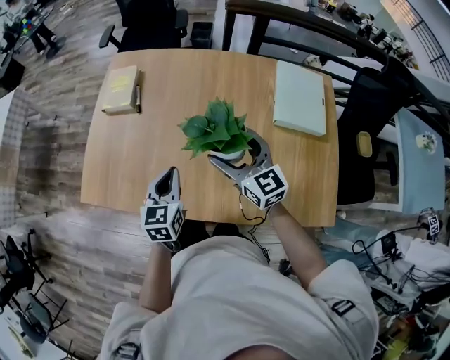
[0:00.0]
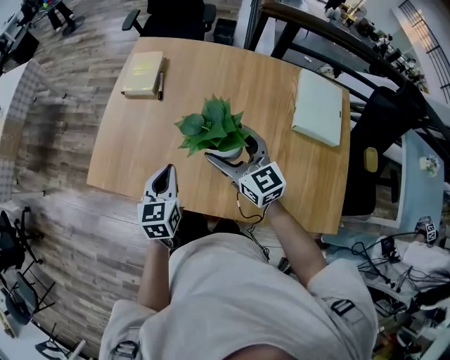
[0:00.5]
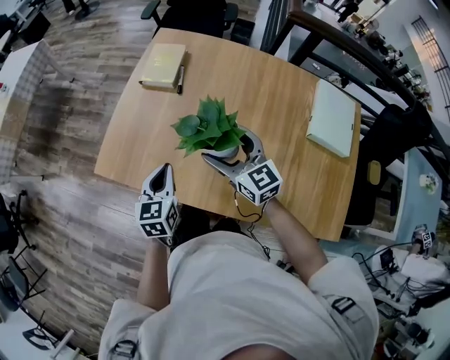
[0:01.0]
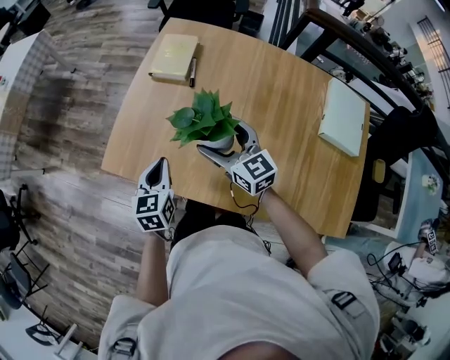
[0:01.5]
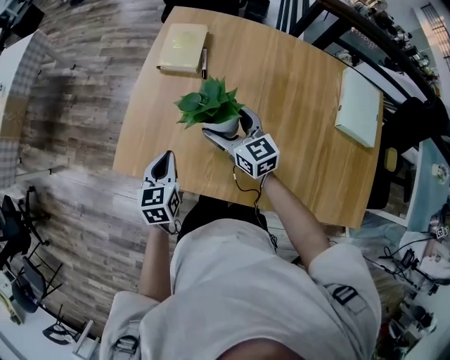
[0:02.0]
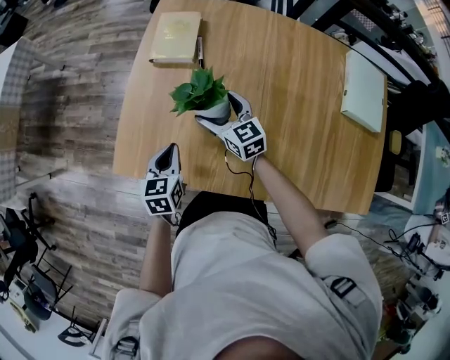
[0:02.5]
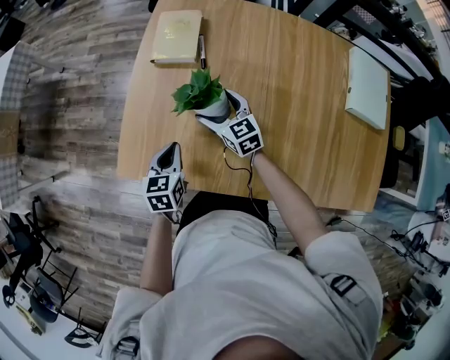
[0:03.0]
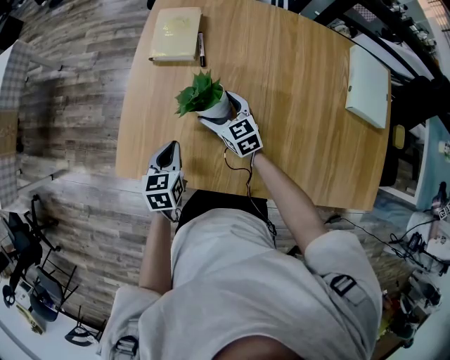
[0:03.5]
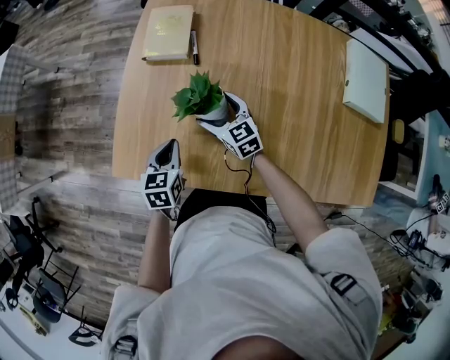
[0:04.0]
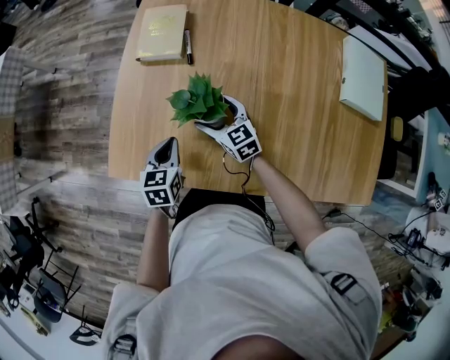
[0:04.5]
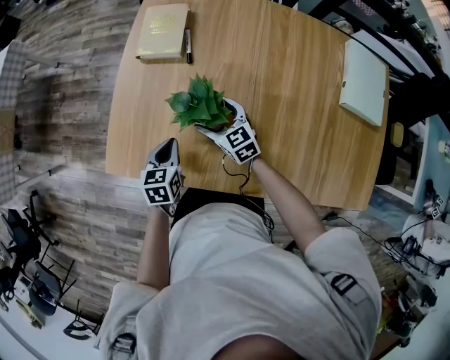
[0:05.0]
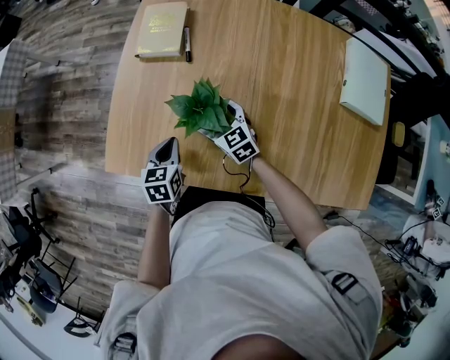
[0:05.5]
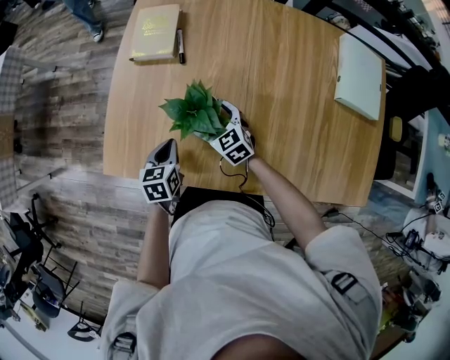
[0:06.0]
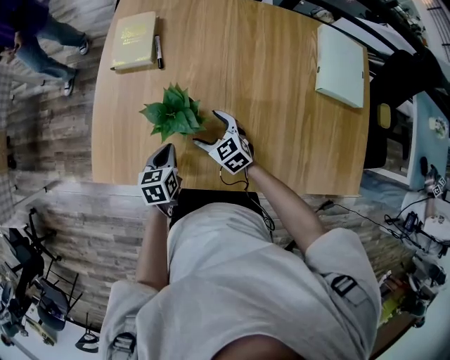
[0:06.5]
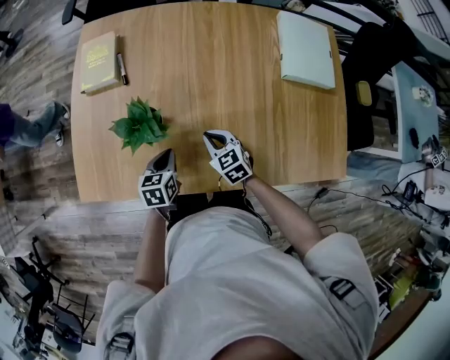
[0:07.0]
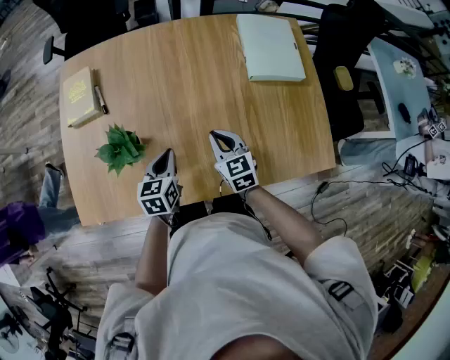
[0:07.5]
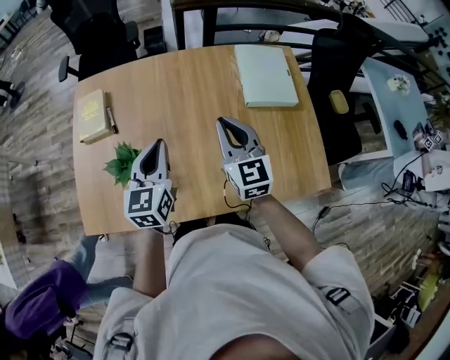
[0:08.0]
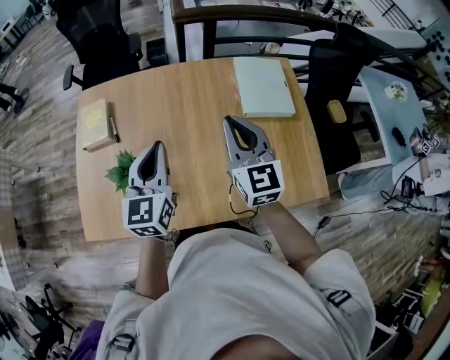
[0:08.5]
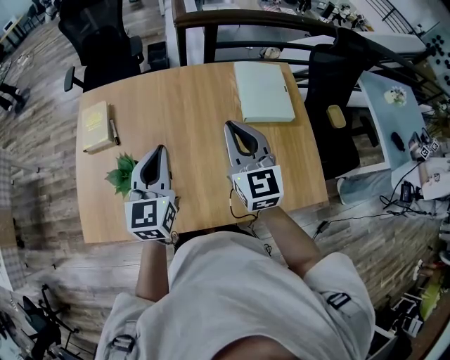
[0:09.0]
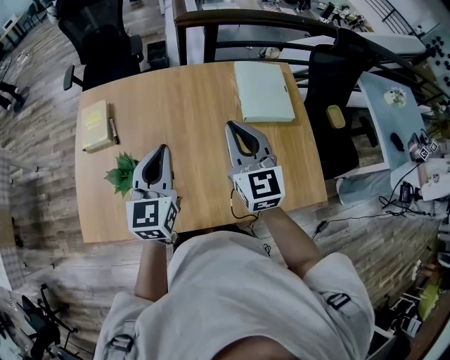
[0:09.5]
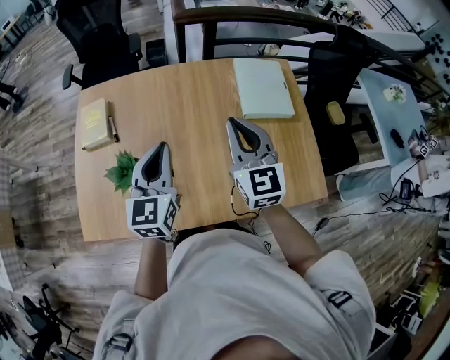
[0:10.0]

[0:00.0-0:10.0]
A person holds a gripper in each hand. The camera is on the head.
0:00.0 to 0:02.0: The right gripper moves to the left and forward, approximately 30 cm; the left gripper shifts roughly 25 cm to the left.
0:02.0 to 0:04.0: The left gripper heads downward, covering some 5 cm, while the right gripper travels downward by roughly 15 cm.
0:04.0 to 0:06.0: The right gripper moves roughly 5 cm.
0:06.0 to 0:08.0: The left gripper shifts by some 35 cm, and points its fingers roughly 30 degrees further upward, while the right gripper ends up some 40 cm from where it was, rotates about 50 degrees, and closes up.
0:08.0 to 0:10.0: The grippers both shift upward by roughly 5 cm.

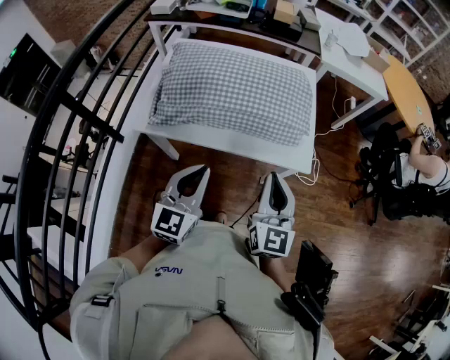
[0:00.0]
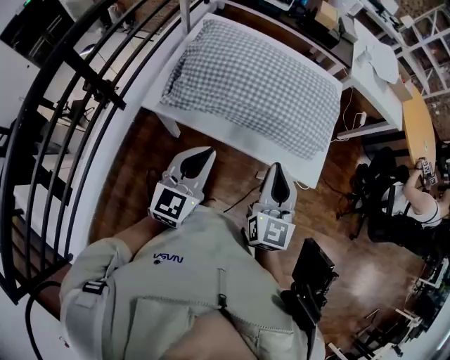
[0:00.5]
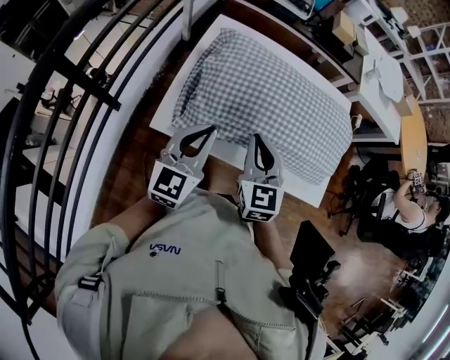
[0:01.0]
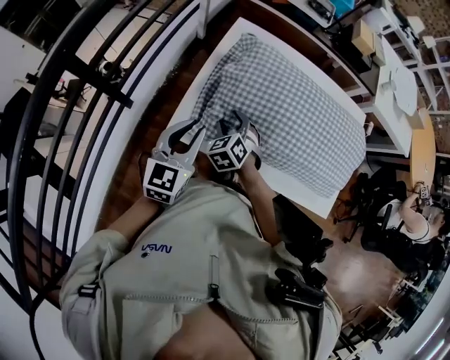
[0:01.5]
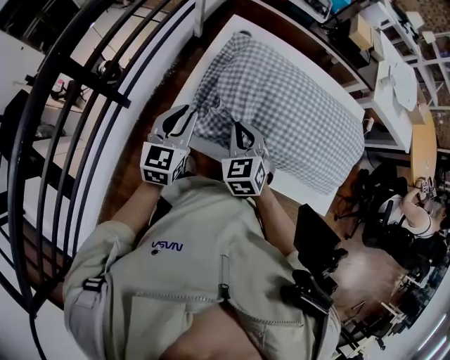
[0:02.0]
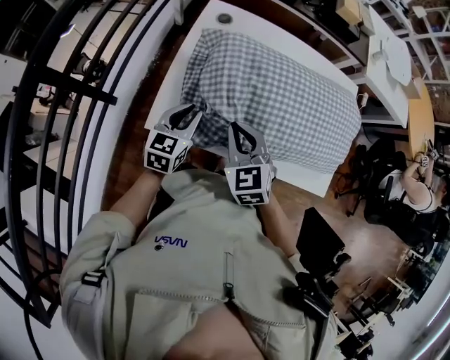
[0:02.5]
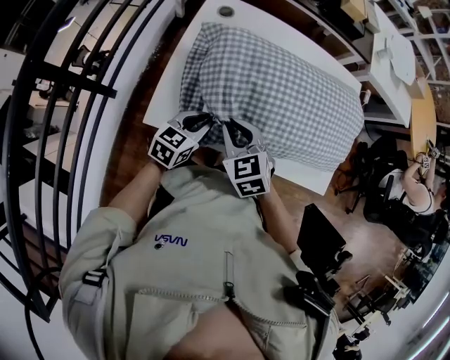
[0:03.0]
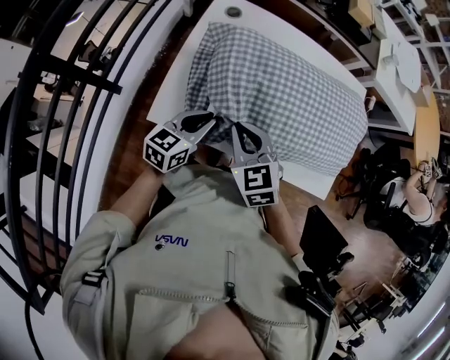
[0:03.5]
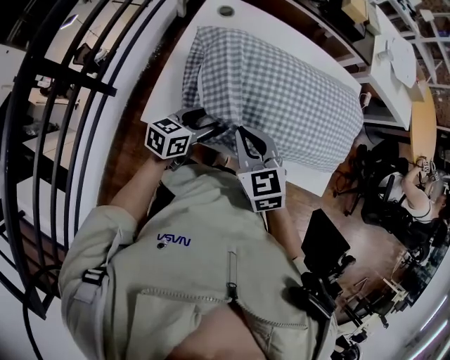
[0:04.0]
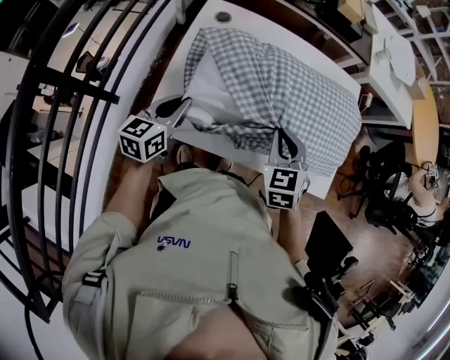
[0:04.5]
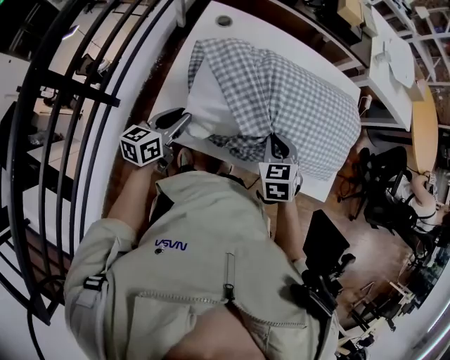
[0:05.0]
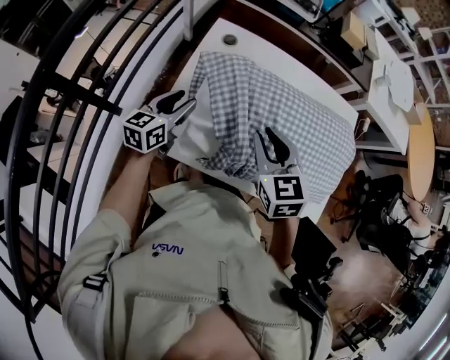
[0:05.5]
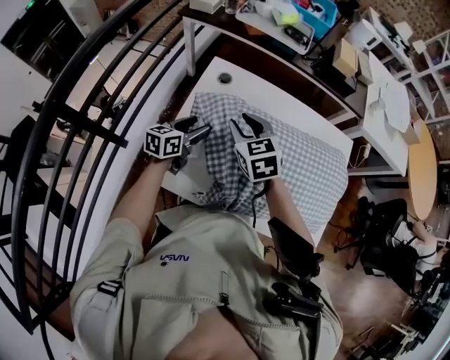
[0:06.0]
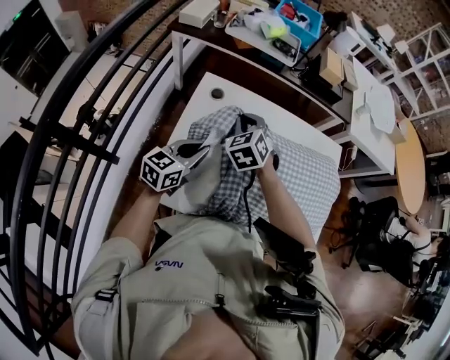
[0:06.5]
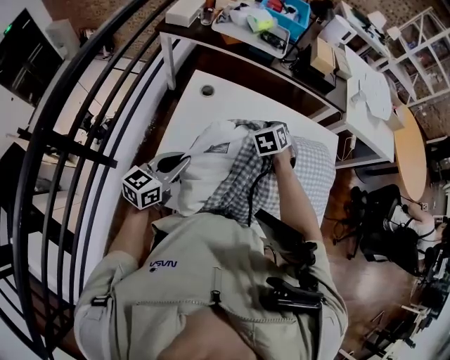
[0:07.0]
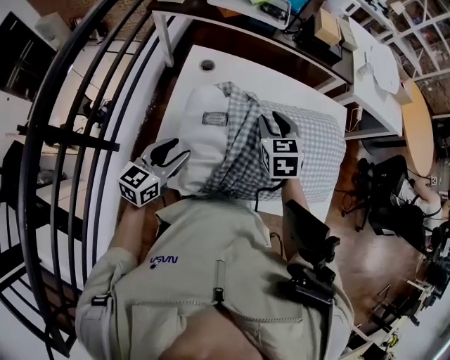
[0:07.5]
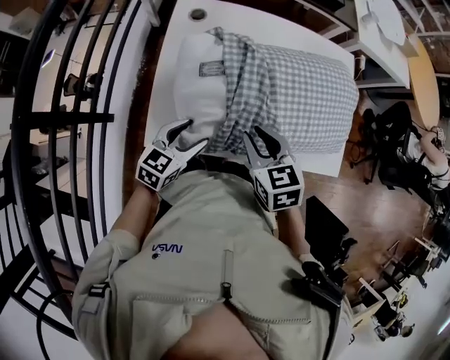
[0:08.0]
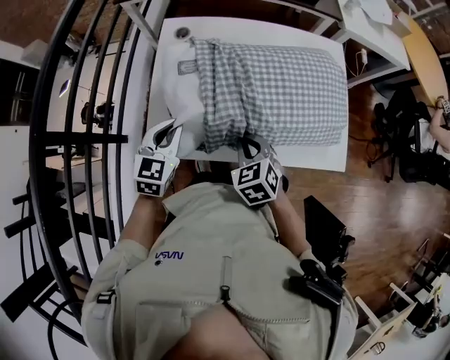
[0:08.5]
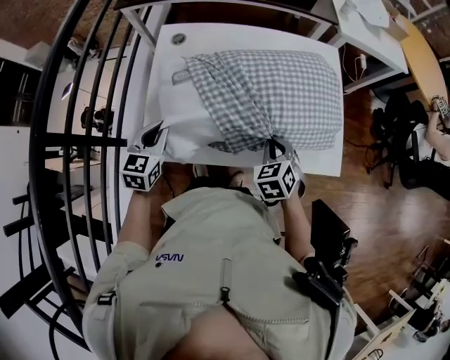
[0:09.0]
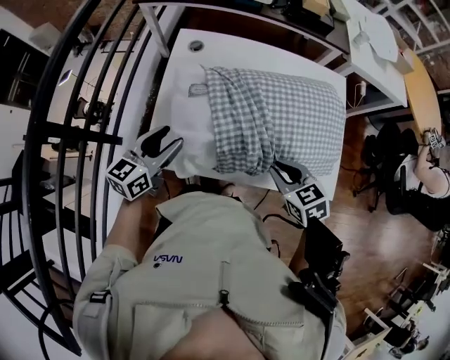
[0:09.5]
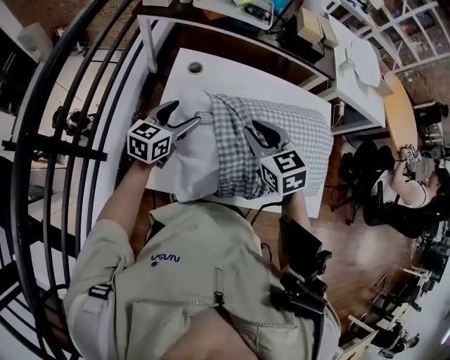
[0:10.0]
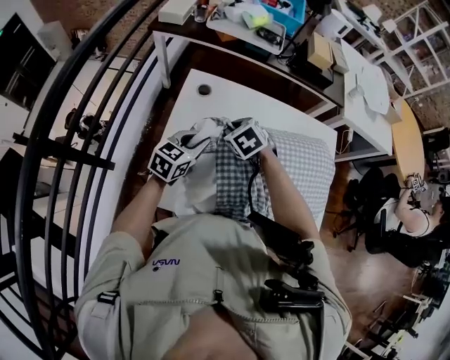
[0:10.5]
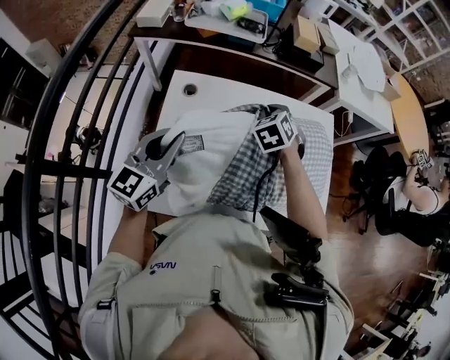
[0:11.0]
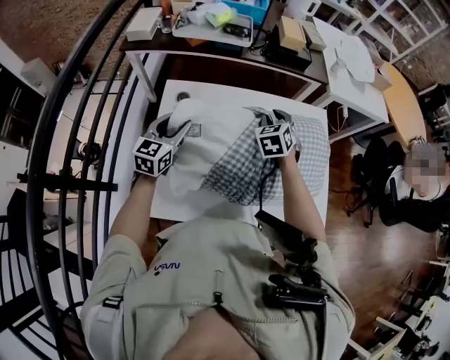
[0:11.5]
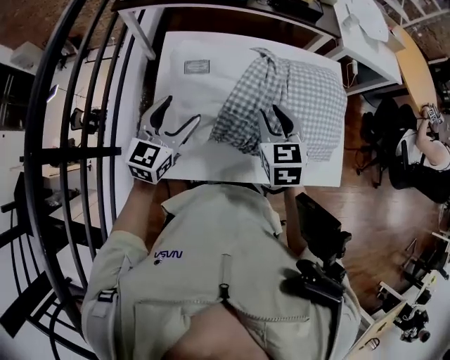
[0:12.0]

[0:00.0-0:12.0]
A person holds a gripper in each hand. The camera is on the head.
0:00.0 to 0:02.0: Both grippers move to the left and forward, some 40 cm. The right gripper angles its fingers downward, by about 30 degrees, and opens, then closes again.
0:02.0 to 0:04.0: The left gripper shifts some 15 cm to the right and downward, turns by roughly 40 degrees, and opens its fingers; the right gripper is displaced to the right by about 5 cm.
0:04.0 to 0:06.0: The left gripper shifts about 20 cm forward and to the left, and closes, then reopens. The right gripper shifts roughly 20 cm forward, and opens up.
0:06.0 to 0:08.0: Both grippers travel together backward and to the right, approximately 20 cm. The right gripper changes its angle by about 20 degrees, and closes and opens again, while the left gripper rotates approximately 30 degrees, and closes and opens again.
0:08.0 to 0:10.0: The left gripper travels forward by approximately 20 cm, and closes, then opens again. Meanwhile the right gripper moves forward and upward, approximately 15 cm, and reaches roughly 15 cm to the right, then returns.
0:10.0 to 0:12.0: The left gripper reaches some 15 cm upward, then returns, and closes, then reopens. Meanwhile the right gripper is displaced to the right by about 5 cm, reaches some 15 cm forward, then returns, and swivels some 20 degrees.

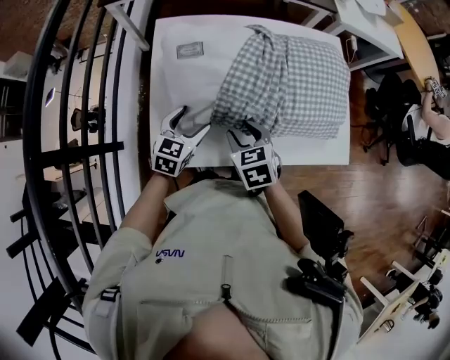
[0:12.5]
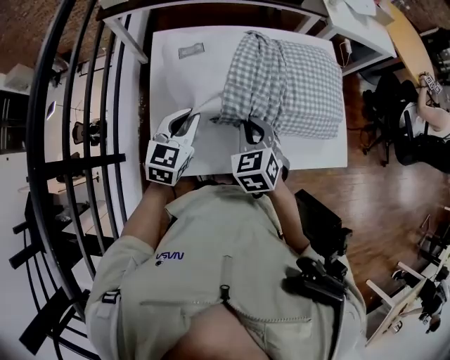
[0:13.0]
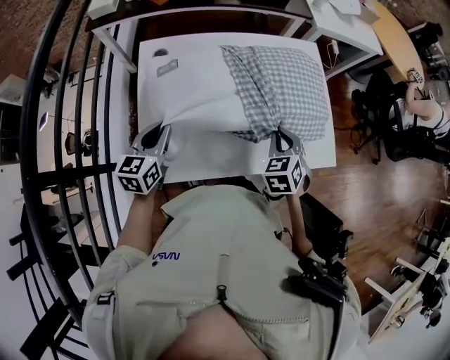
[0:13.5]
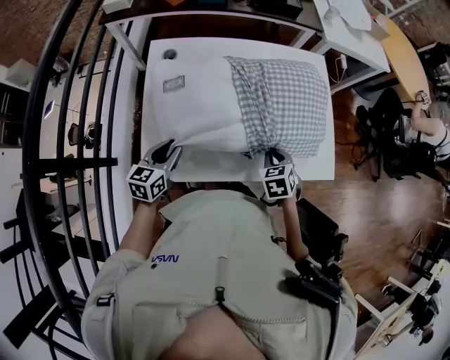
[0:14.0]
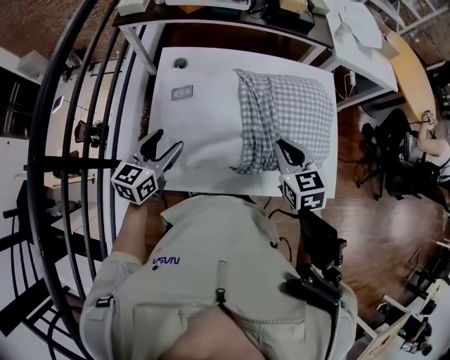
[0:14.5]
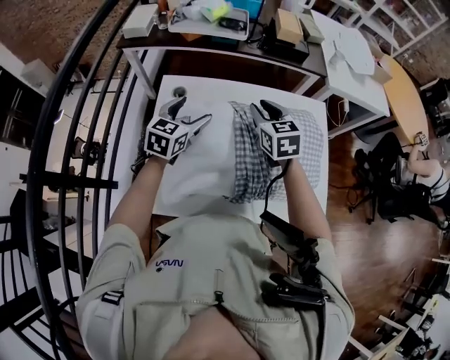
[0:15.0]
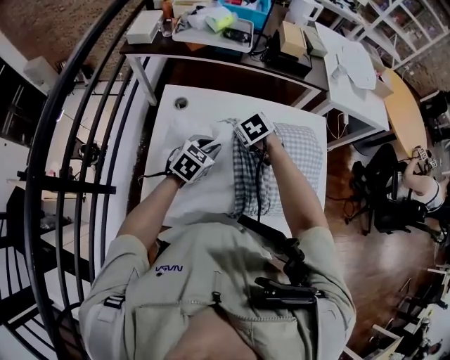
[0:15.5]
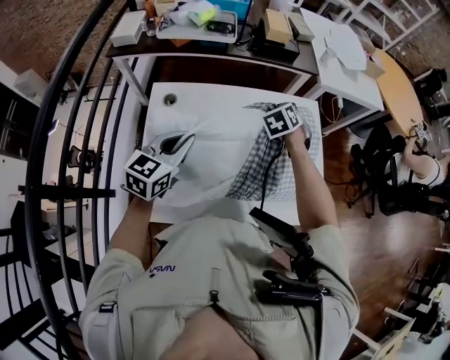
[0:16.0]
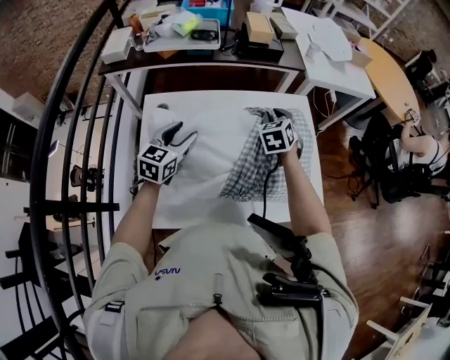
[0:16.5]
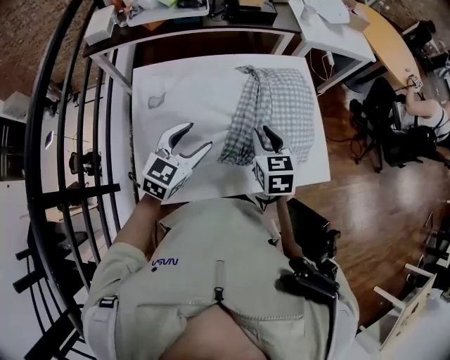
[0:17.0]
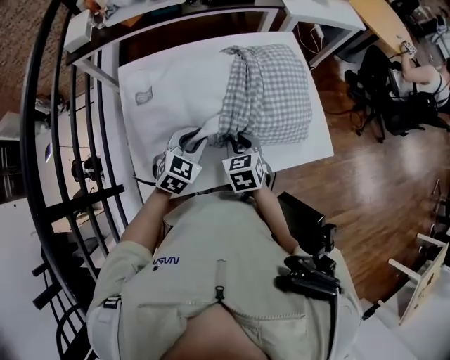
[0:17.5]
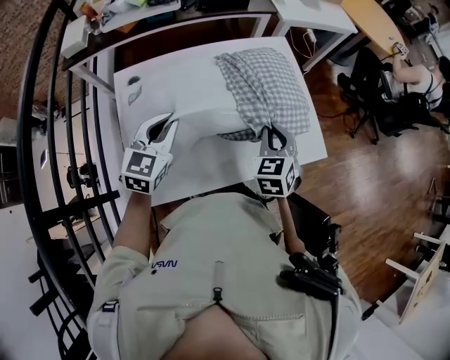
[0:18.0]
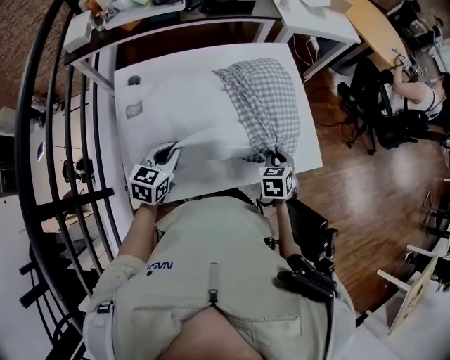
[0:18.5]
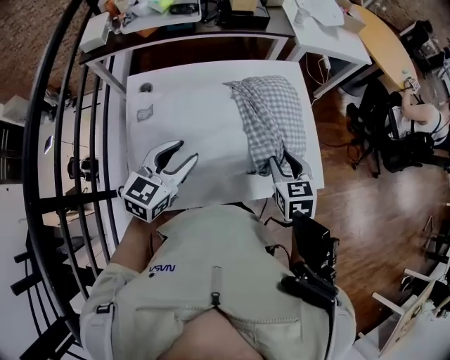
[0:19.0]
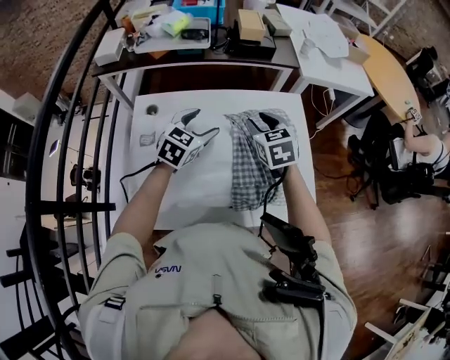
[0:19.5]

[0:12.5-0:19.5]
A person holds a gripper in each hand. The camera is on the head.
0:12.5 to 0:14.5: The left gripper swings up and down, approximately 10 cm each way, with 2 reversals, and closes and opens again; the right gripper shifts roughly 20 cm to the right, upward and forward, and closes.
0:14.5 to 0:16.0: The left gripper travels forward, upward and to the right by roughly 15 cm, and closes its fingers. Meanwhile the right gripper travels forward by roughly 25 cm, turns by roughly 30 degrees, and opens, then closes again.
0:16.0 to 0:17.5: The right gripper goes about 30 cm backward, and swivels approximately 30 degrees, while the left gripper heads downward, to the right and backward, covering some 20 cm, changes its angle by roughly 30 degrees, and opens, then closes again.
0:17.5 to 0:19.5: Both grippers travel together forward and upward, roughly 20 cm. The left gripper opens up.
